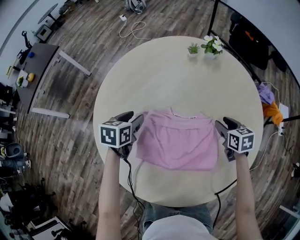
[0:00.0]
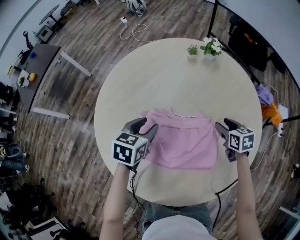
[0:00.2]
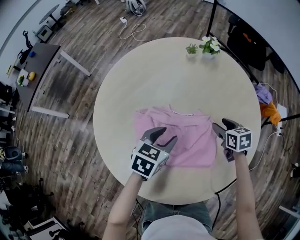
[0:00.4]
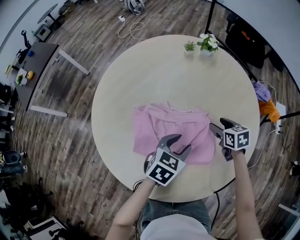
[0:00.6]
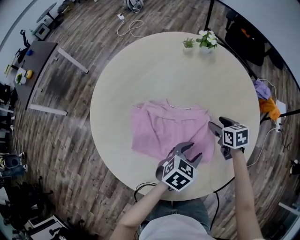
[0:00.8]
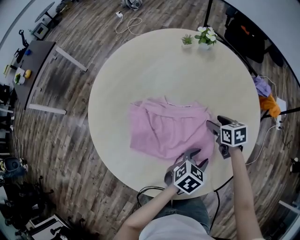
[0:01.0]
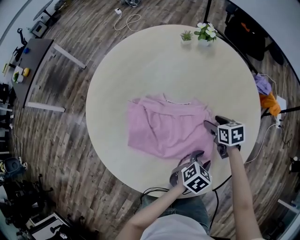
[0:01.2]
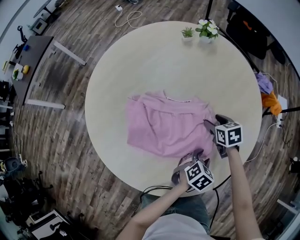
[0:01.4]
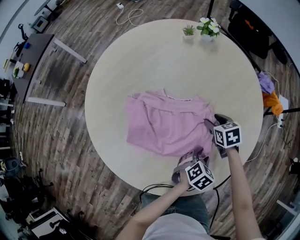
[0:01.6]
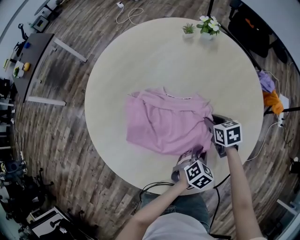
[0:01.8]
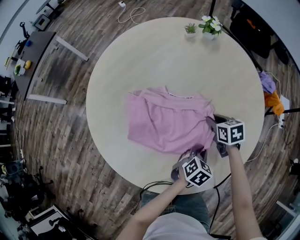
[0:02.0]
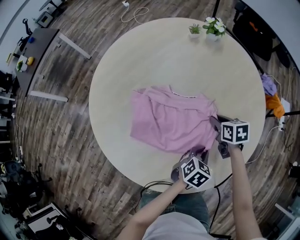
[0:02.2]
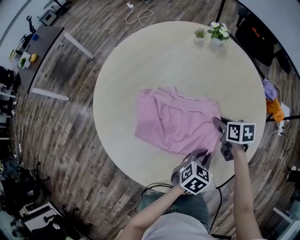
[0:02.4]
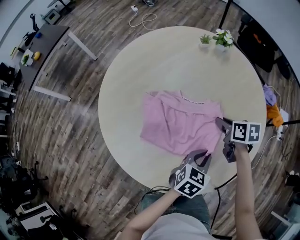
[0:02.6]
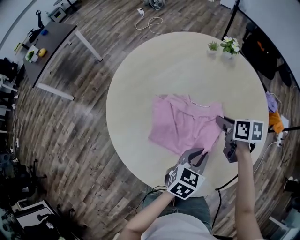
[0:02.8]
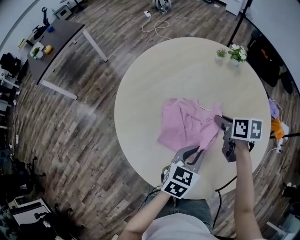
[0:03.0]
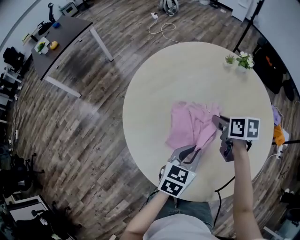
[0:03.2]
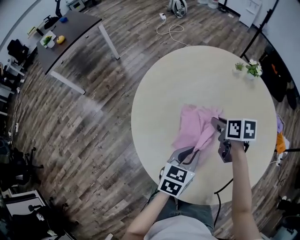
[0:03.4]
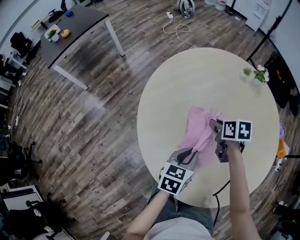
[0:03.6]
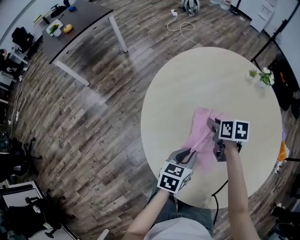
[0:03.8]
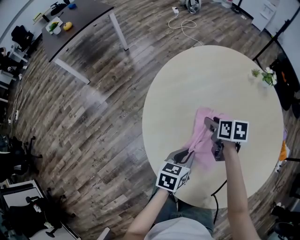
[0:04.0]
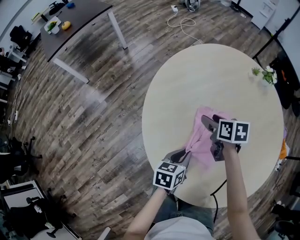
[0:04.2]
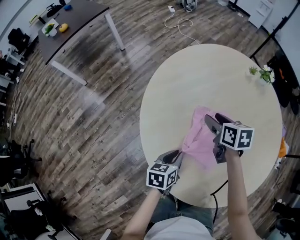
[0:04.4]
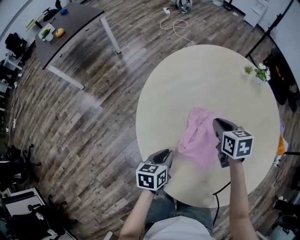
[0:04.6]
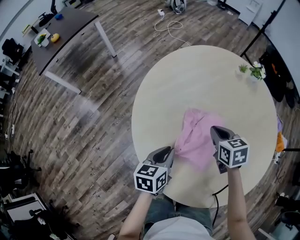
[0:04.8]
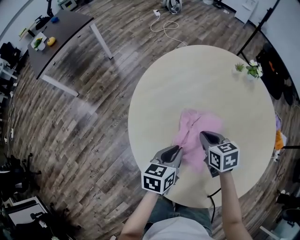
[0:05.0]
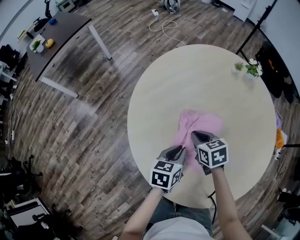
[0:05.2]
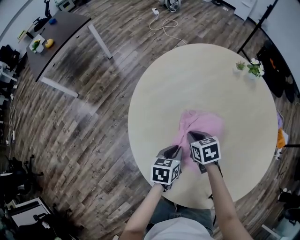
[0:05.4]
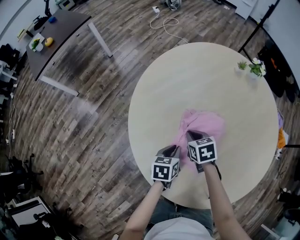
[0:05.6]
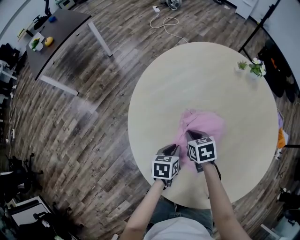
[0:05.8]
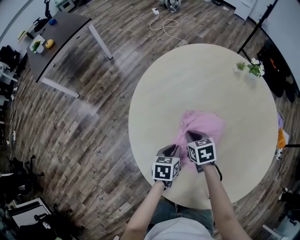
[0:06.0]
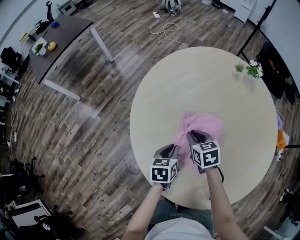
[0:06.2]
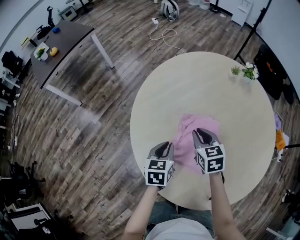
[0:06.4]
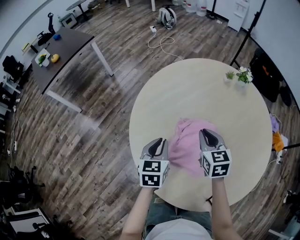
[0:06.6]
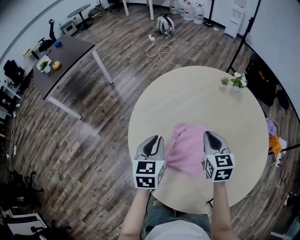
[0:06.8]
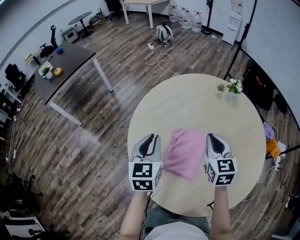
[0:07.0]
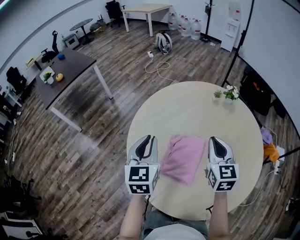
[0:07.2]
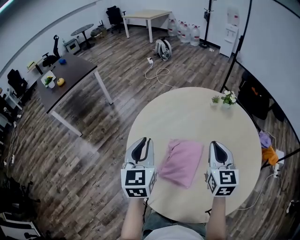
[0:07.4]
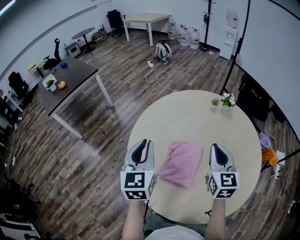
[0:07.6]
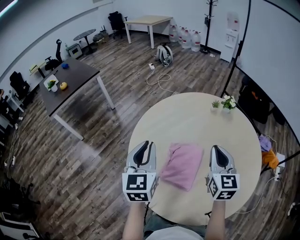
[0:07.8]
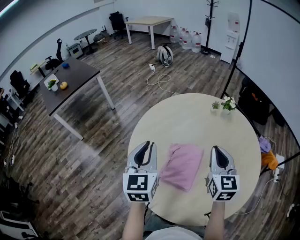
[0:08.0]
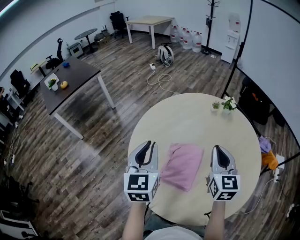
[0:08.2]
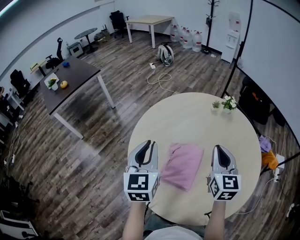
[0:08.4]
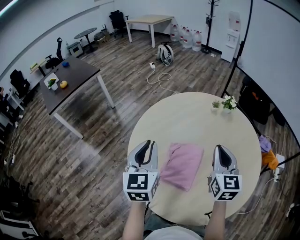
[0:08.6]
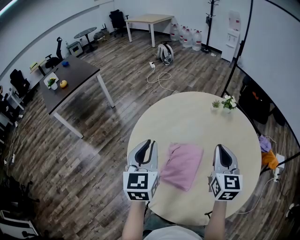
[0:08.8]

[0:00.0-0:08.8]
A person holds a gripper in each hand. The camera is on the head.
0:00.0 to 0:01.4: The left gripper travels to the right and backward by some 40 cm, and swivels some 40 degrees; the right gripper heads backward and downward, covering some 10 cm.
0:01.4 to 0:03.0: The grippers both shift to the left and upward by approximately 20 cm. The left gripper turns by some 40 degrees, and closes up; the right gripper closes its fingers.
0:03.0 to 0:04.4: The right gripper goes about 20 cm to the left, and opens up. Meanwhile the left gripper is displaced to the left and downward by approximately 25 cm, and swivels approximately 30 degrees.
0:04.4 to 0:05.8: The left gripper heads forward, covering about 5 cm. The right gripper heads downward, covering roughly 10 cm, and closes.
0:05.8 to 0:07.4: The right gripper heads upward and to the right, covering about 30 cm, and tips its fingers upward by some 40 degrees, while the left gripper travels upward by roughly 30 cm, and tilts its fingers some 30 degrees upward.
0:07.4 to 0:08.8: The grippers make only small movements.

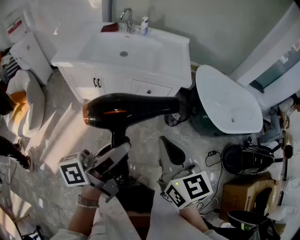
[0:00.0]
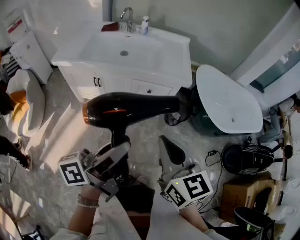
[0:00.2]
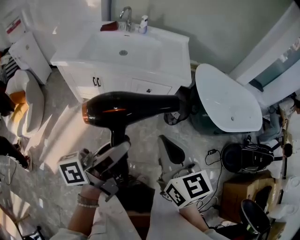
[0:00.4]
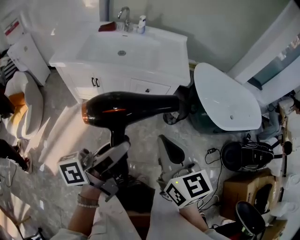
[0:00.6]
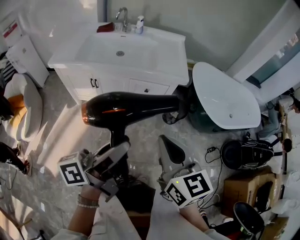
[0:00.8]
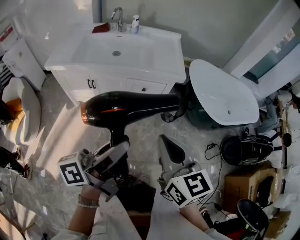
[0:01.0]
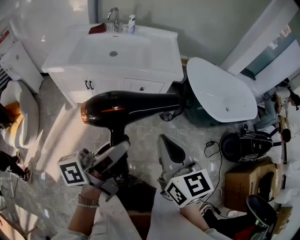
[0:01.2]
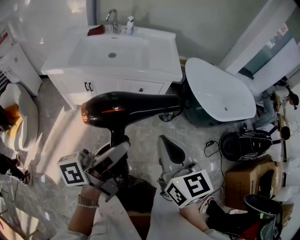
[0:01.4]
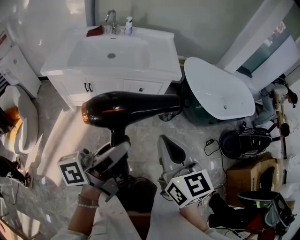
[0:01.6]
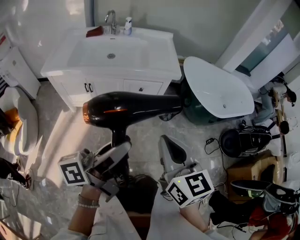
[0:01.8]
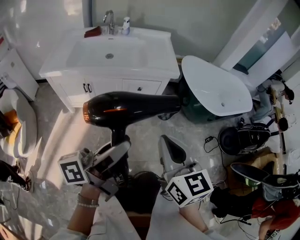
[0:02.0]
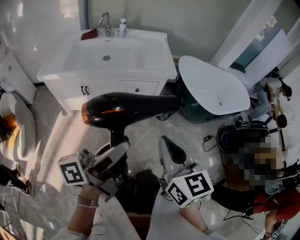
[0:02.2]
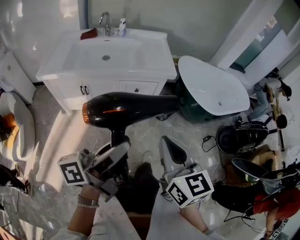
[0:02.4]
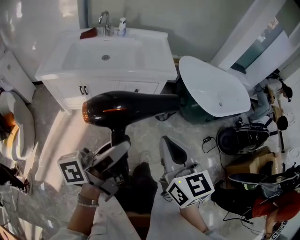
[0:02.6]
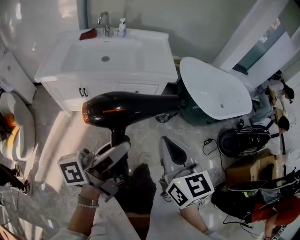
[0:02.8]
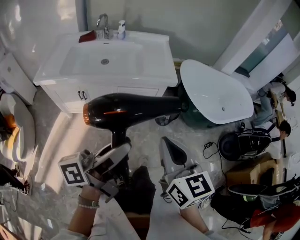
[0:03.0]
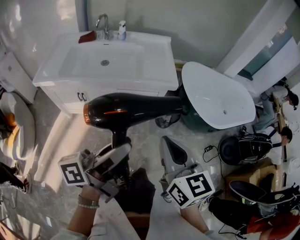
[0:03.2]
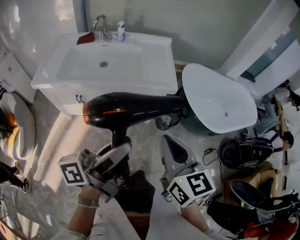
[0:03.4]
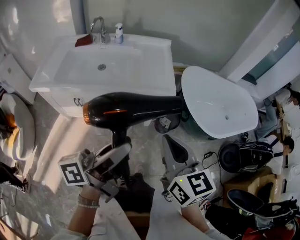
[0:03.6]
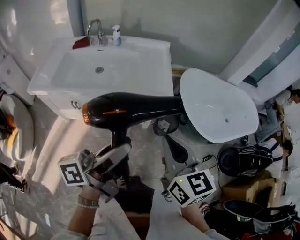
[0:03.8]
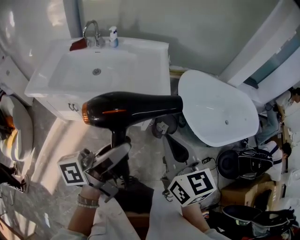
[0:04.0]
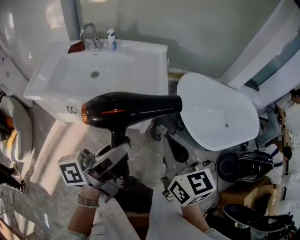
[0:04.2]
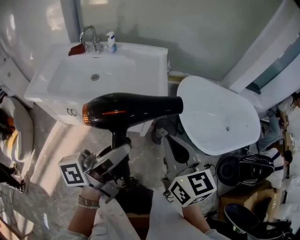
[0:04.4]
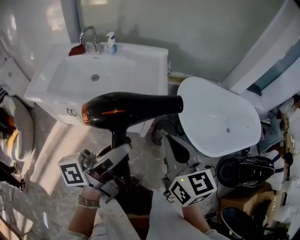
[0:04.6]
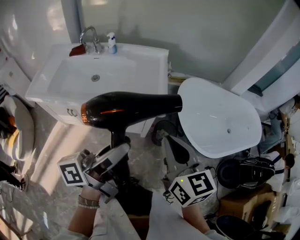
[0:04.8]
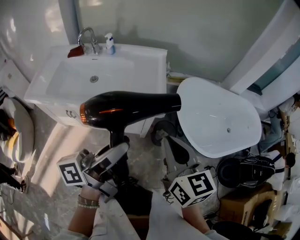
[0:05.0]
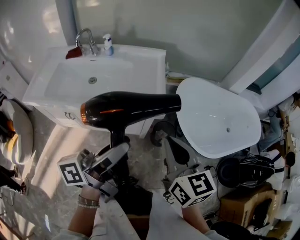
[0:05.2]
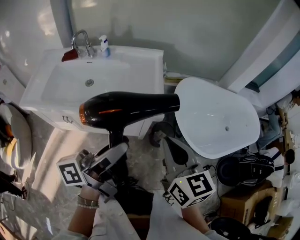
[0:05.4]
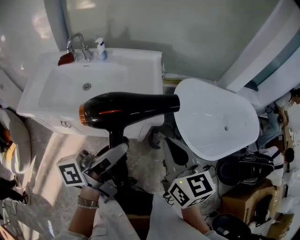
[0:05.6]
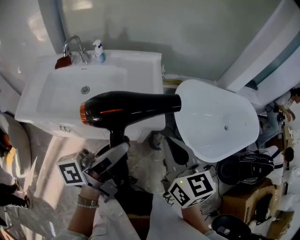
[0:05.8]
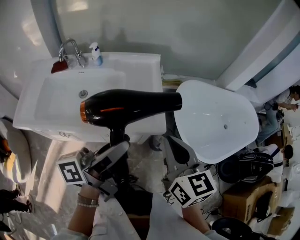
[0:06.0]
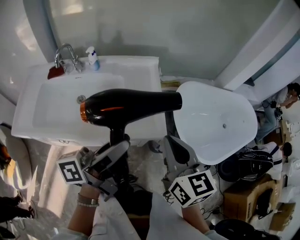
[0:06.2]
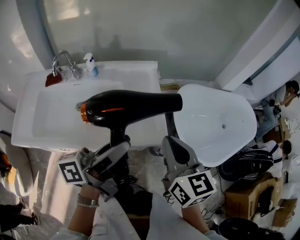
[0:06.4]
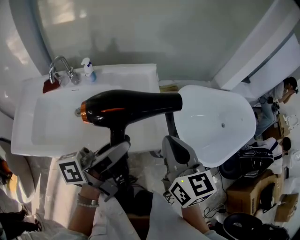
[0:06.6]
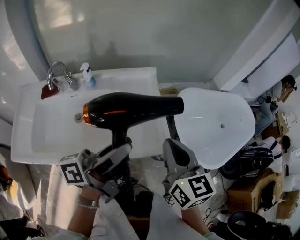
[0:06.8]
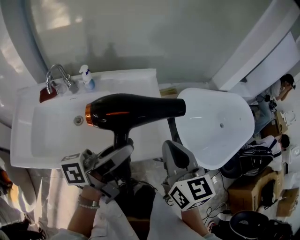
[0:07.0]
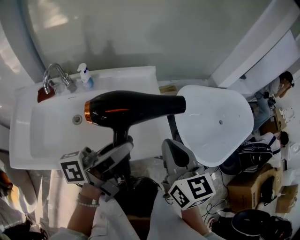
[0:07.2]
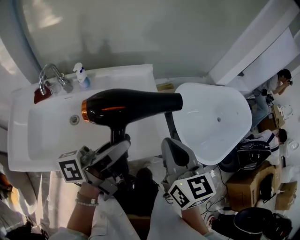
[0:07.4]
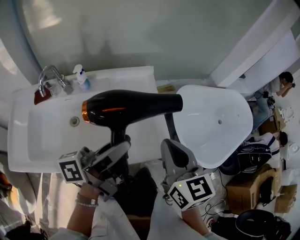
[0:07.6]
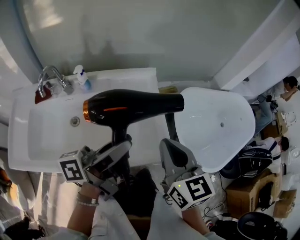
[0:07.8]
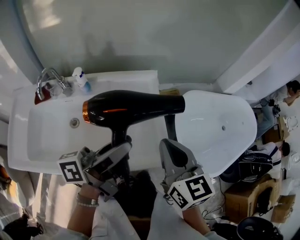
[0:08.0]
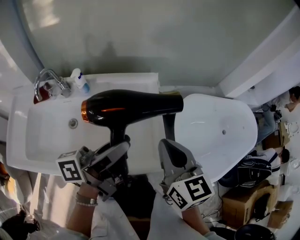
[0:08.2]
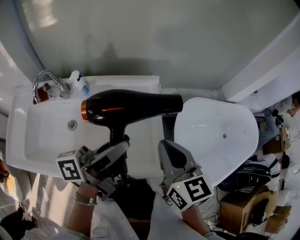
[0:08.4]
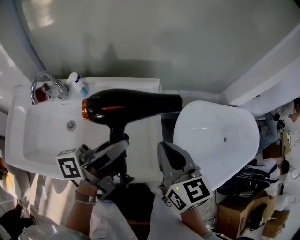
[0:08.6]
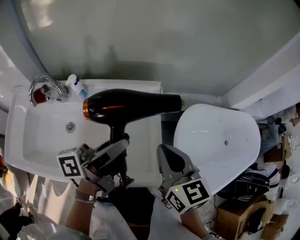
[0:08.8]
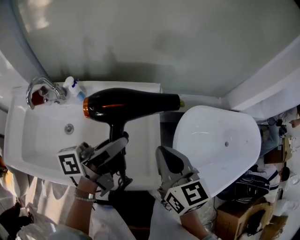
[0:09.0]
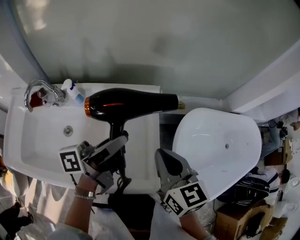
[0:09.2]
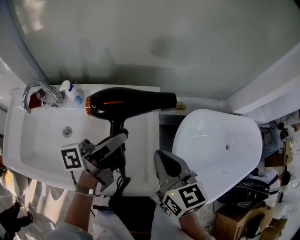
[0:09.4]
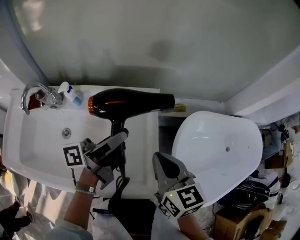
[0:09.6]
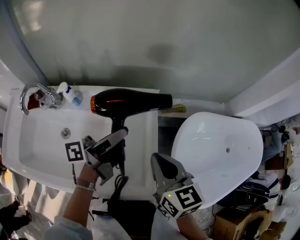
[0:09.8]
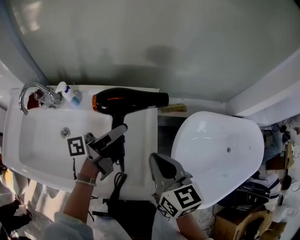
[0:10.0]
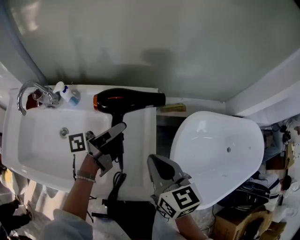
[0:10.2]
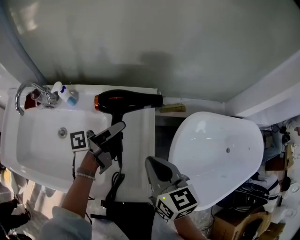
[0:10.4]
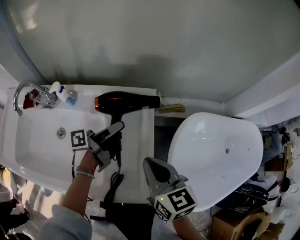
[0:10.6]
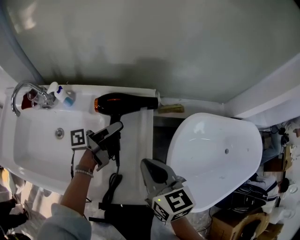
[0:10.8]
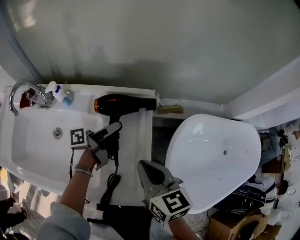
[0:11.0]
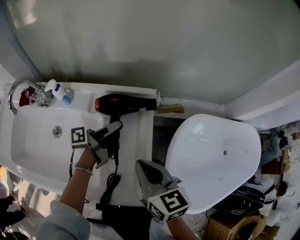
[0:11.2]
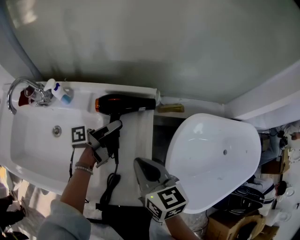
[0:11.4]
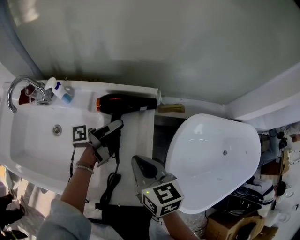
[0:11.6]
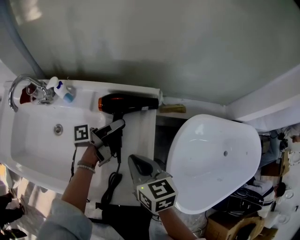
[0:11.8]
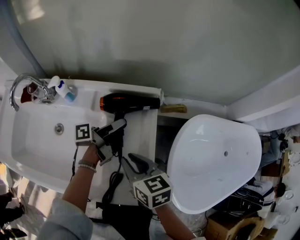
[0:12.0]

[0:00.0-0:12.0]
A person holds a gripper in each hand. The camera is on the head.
0:00.0 to 0:01.6: The grippers move only a little.
0:01.6 to 0:03.0: The grippers both shift forward by roughly 5 cm.
0:03.0 to 0:04.4: The left gripper goes some 25 cm forward and to the right, while the right gripper heads forward, covering some 25 cm.
0:04.4 to 0:06.0: The grippers both shift forward by some 15 cm.
0:06.0 to 0:07.6: The grippers both shift forward and to the left by roughly 15 cm.
0:07.6 to 0:09.0: Both grippers move forward, roughly 15 cm.
0:09.0 to 0:10.4: The right gripper heads downward, covering approximately 5 cm. Meanwhile the left gripper is displaced downward and forward by about 15 cm.
0:10.4 to 0:12.0: The right gripper is displaced downward and to the left by roughly 10 cm, and opens its fingers. Meanwhile the left gripper moves downward, some 10 cm.

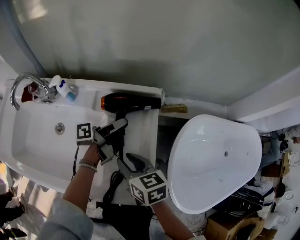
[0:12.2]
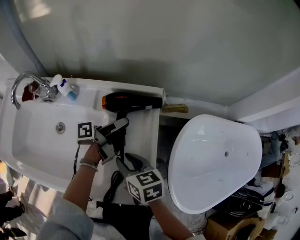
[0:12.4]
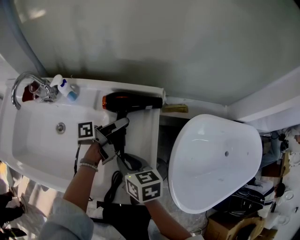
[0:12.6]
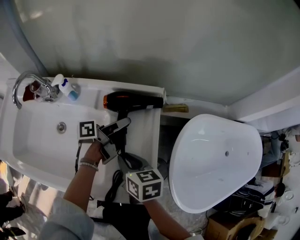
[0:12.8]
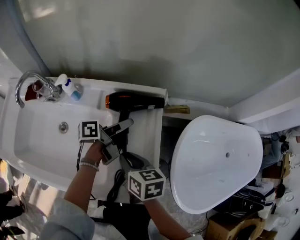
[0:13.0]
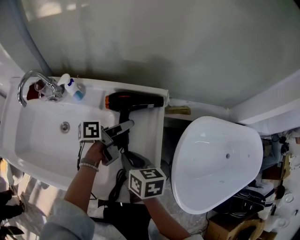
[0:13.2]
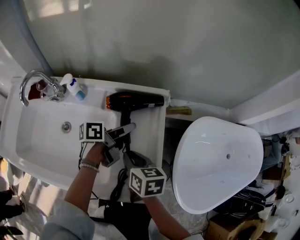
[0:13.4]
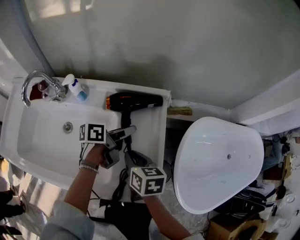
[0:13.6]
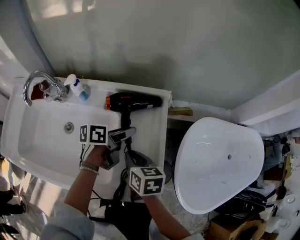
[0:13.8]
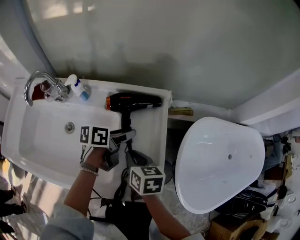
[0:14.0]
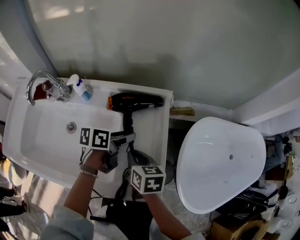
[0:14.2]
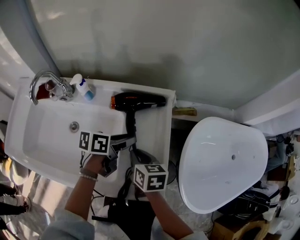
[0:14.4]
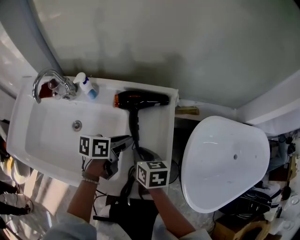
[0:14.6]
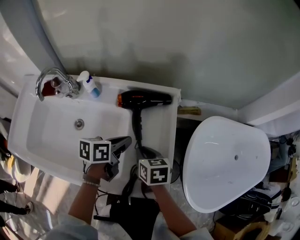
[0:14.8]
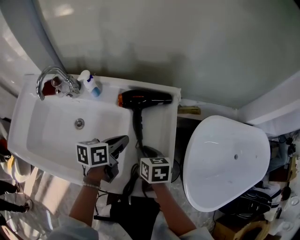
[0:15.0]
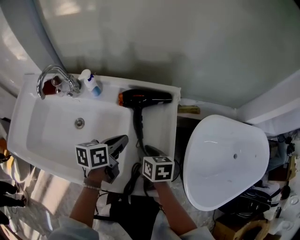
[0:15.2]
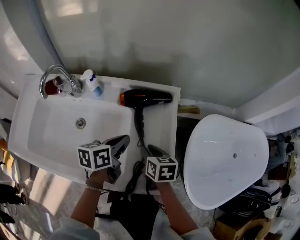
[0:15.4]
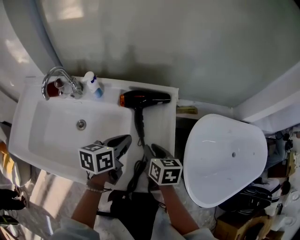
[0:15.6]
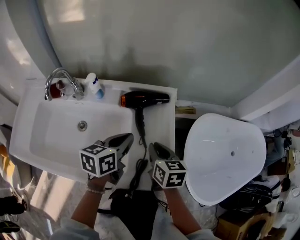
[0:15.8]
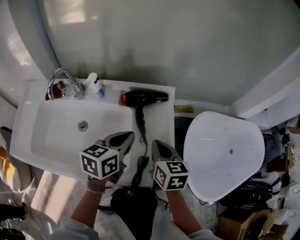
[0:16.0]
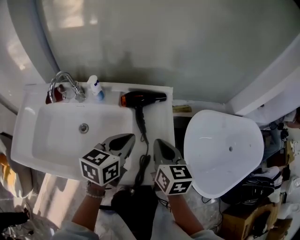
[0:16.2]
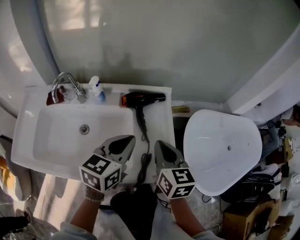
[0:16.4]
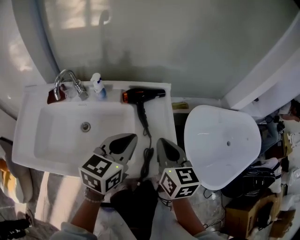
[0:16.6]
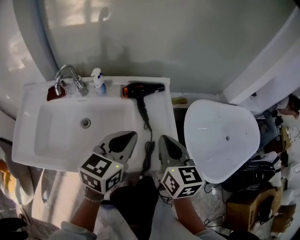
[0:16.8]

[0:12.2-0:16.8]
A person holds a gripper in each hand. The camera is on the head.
0:12.2 to 0:13.8: The left gripper swivels roughly 30 degrees.
0:13.8 to 0:15.2: The left gripper travels backward and to the left by about 10 cm, and closes its fingers.
0:15.2 to 0:16.8: Both grippers move upward and backward, about 25 cm. The right gripper swivels approximately 40 degrees, and closes up, while the left gripper turns by approximately 40 degrees.
